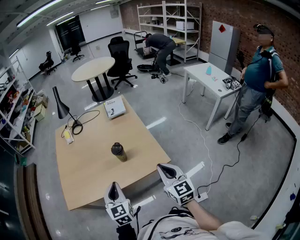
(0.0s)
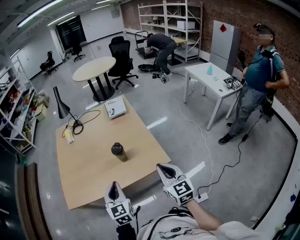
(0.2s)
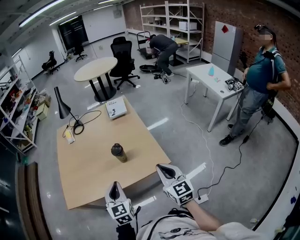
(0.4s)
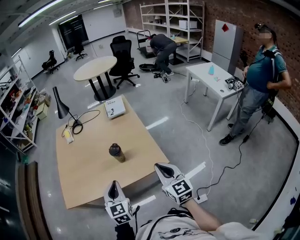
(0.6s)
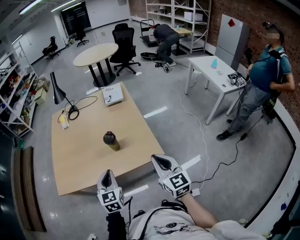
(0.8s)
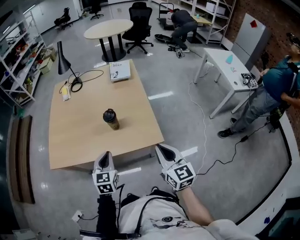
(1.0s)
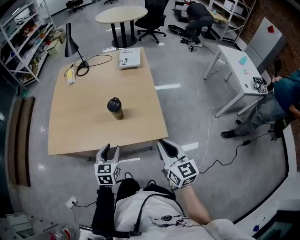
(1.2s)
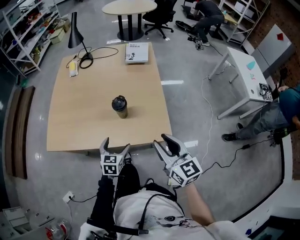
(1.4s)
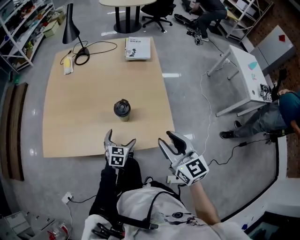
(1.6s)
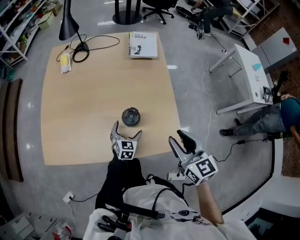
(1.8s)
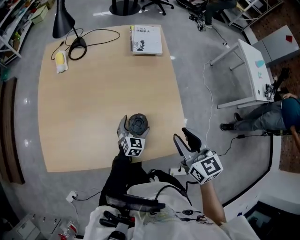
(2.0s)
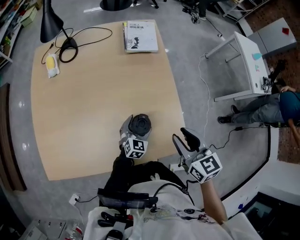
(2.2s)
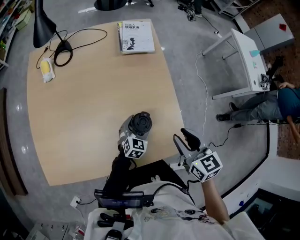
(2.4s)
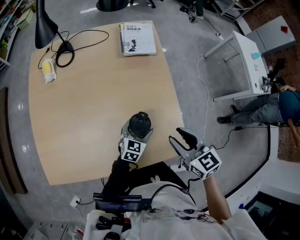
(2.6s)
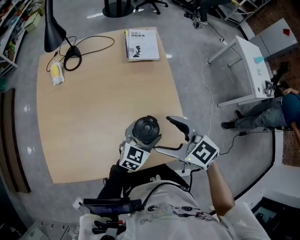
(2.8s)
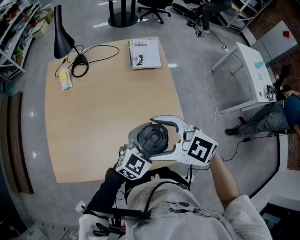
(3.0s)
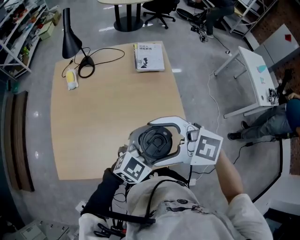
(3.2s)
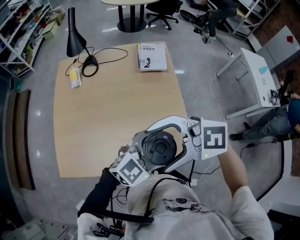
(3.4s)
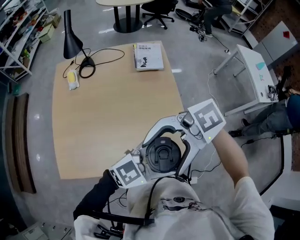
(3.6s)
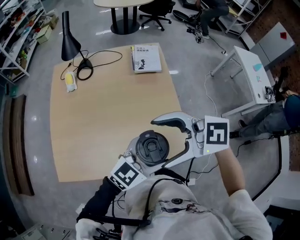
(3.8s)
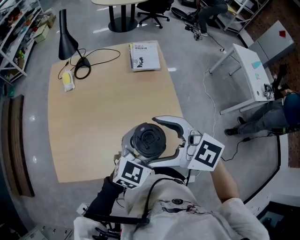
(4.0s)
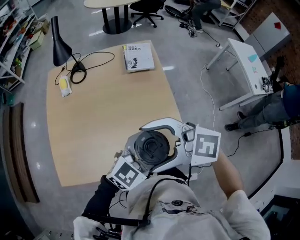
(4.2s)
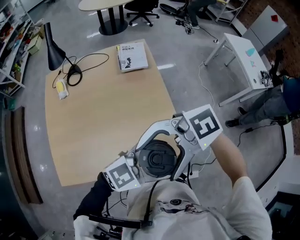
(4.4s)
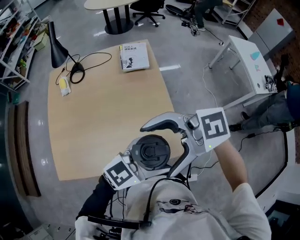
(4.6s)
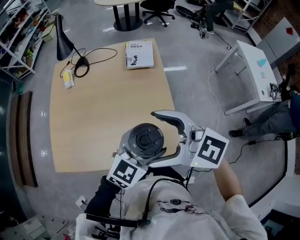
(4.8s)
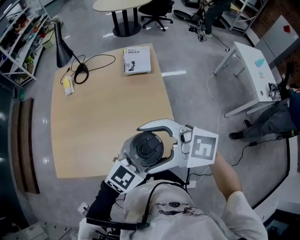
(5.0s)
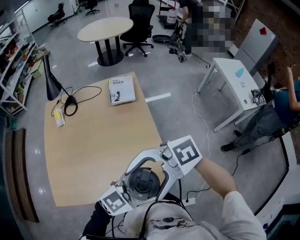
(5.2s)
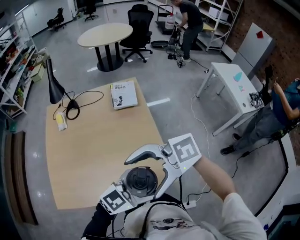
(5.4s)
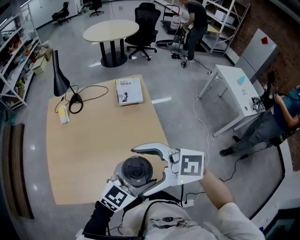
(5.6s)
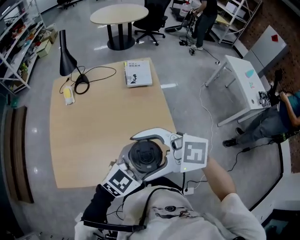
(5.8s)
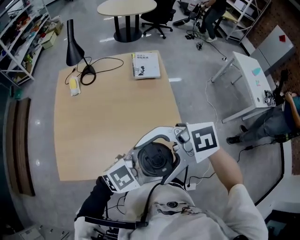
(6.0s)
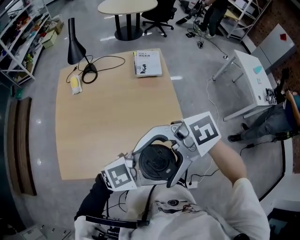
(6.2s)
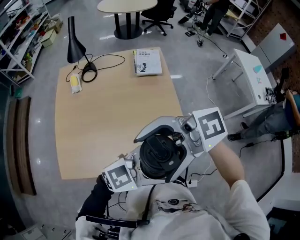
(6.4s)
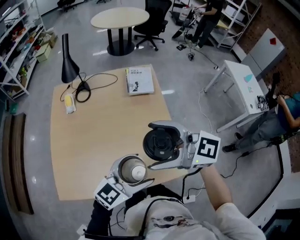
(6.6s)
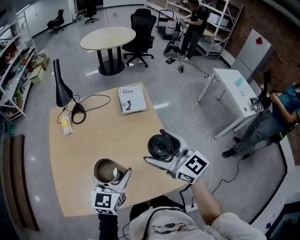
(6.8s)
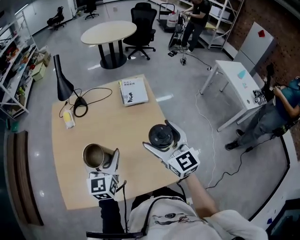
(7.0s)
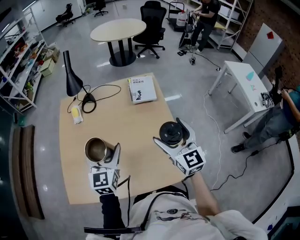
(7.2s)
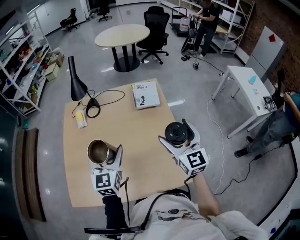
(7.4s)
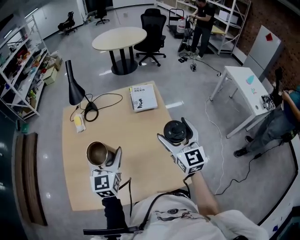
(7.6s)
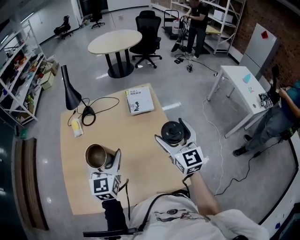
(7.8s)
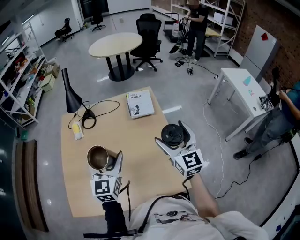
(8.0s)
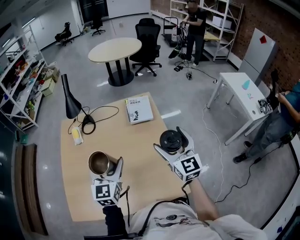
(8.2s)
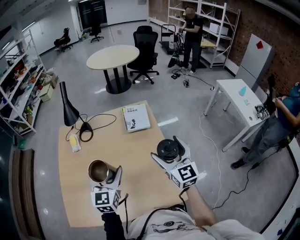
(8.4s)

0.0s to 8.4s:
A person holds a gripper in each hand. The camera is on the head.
0.0s to 1.4s: The left gripper goes some 20 cm downward, rotates roughly 20 degrees, and opens, while the right gripper shifts about 5 cm forward, and swivels about 20 degrees.
1.4s to 2.8s: The left gripper moves forward, about 20 cm, and swivels roughly 40 degrees; the right gripper goes approximately 25 cm forward and to the left, swivels about 30 degrees, and opens.
2.8s to 4.2s: The grippers both shift upward by about 15 cm. The left gripper rotates roughly 20 degrees. The right gripper changes its angle by approximately 40 degrees.
5.6s to 7.0s: The right gripper shifts by about 15 cm, and rotates approximately 60 degrees, while the left gripper changes place by about 25 cm, and turns by about 50 degrees.
7.0s to 8.4s: The right gripper heads to the right, covering some 5 cm.

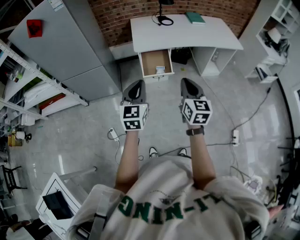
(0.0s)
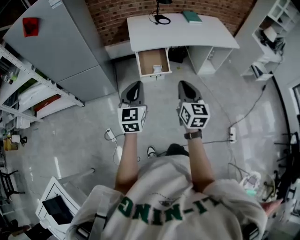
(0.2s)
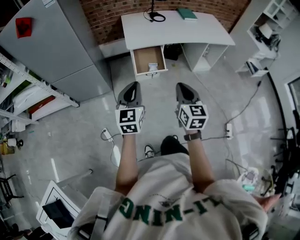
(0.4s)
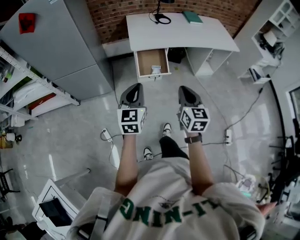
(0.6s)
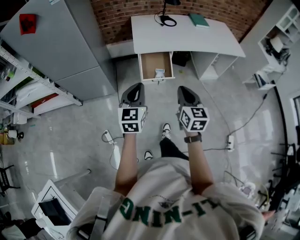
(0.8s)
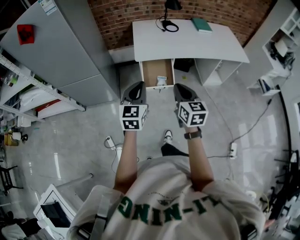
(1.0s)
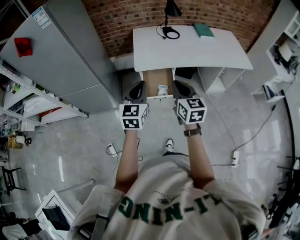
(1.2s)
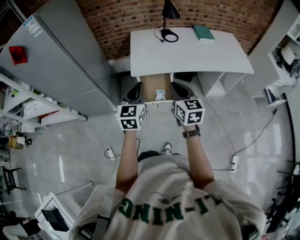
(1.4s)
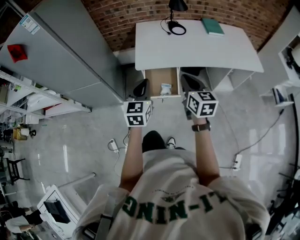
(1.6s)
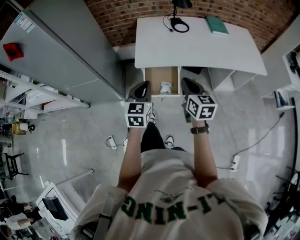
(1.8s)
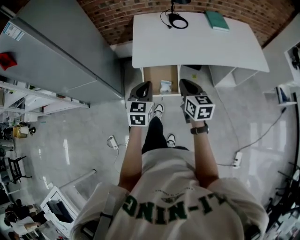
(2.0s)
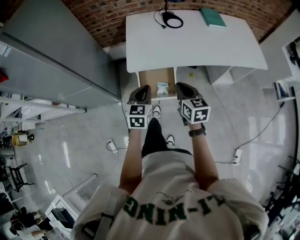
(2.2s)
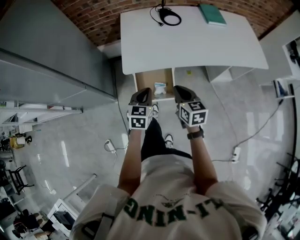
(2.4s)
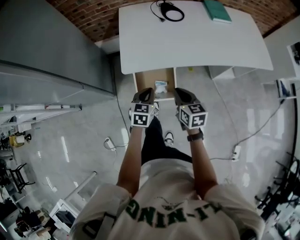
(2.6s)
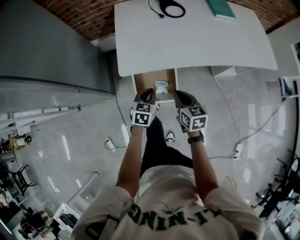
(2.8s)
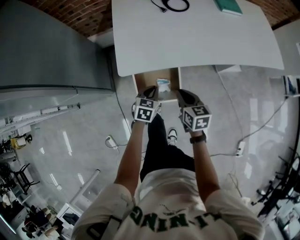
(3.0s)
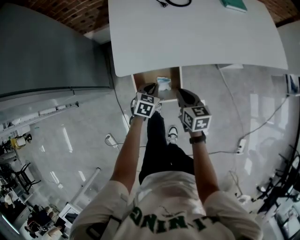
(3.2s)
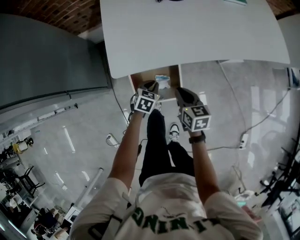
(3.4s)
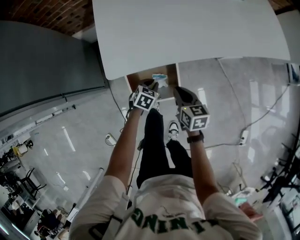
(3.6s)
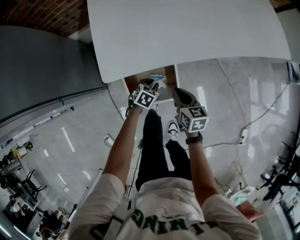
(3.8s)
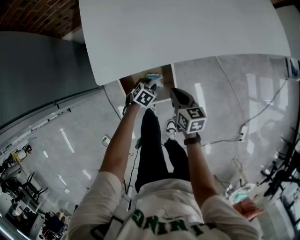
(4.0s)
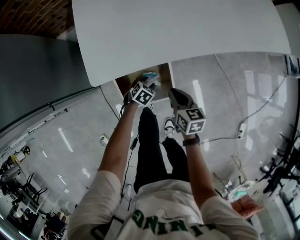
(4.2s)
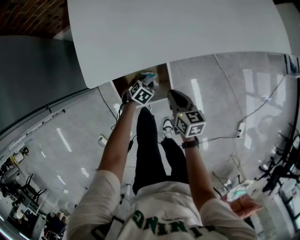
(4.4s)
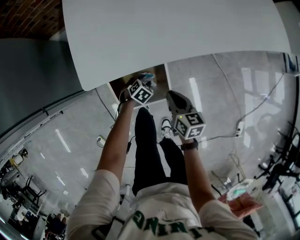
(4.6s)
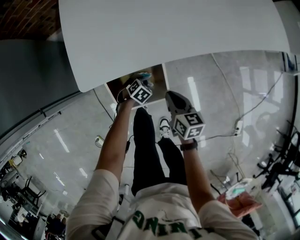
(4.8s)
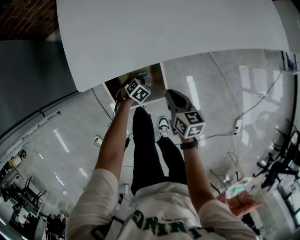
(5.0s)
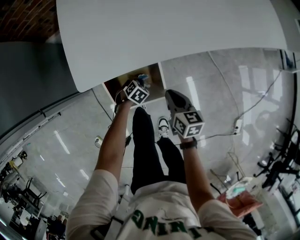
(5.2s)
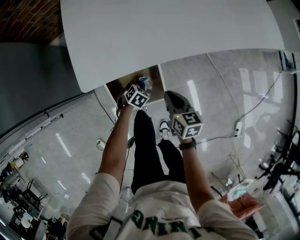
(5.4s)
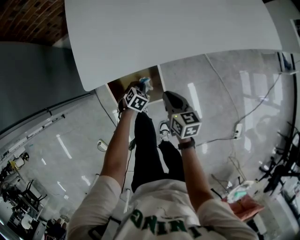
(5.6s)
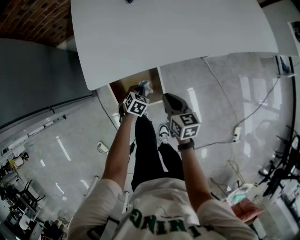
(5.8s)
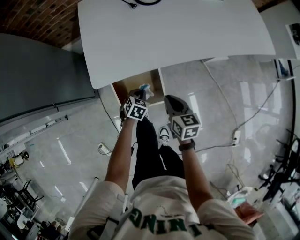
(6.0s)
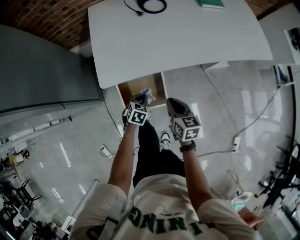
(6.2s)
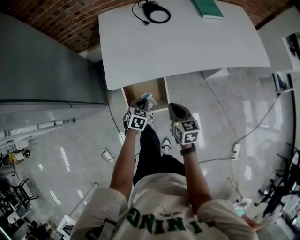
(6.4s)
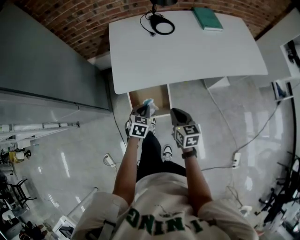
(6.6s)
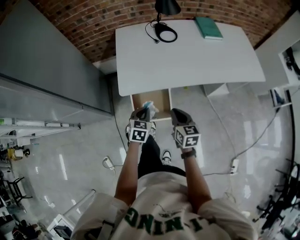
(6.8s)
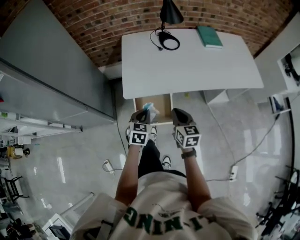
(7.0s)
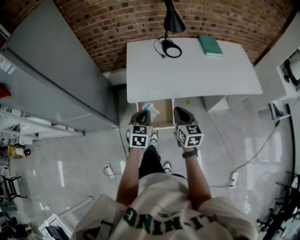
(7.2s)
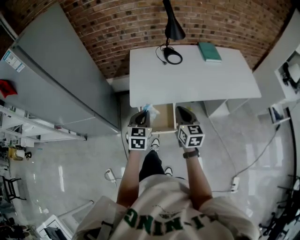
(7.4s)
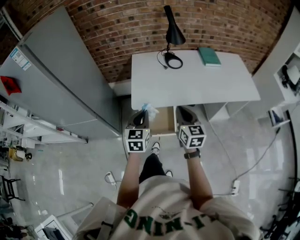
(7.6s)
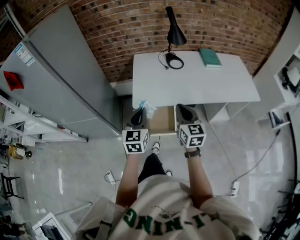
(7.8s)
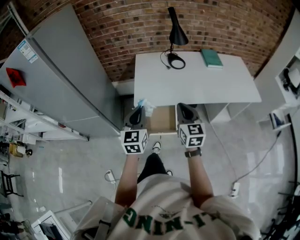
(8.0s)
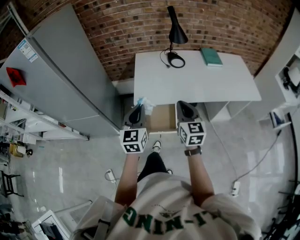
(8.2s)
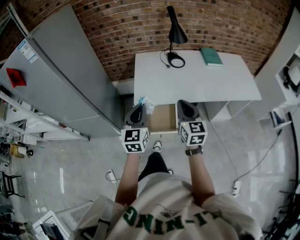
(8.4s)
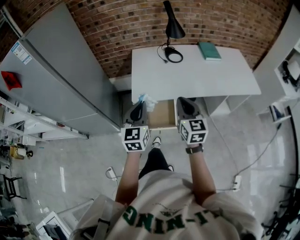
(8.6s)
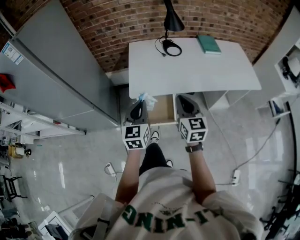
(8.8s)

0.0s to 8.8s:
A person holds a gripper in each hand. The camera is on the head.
0.0s to 1.4s: The two grippers go about 25 cm forward.
1.4s to 3.0s: Both grippers travel together downward and forward, some 35 cm. The left gripper angles its fingers downward, by roughly 30 degrees, while the right gripper rotates about 30 degrees.
3.0s to 4.4s: The left gripper is displaced downward by roughly 25 cm, turns by about 30 degrees, and opens its fingers. The right gripper shifts approximately 15 cm downward.
4.4s to 5.8s: The grippers both shift upward by some 5 cm. The left gripper closes its fingers.
5.8s to 7.4s: The right gripper travels upward by approximately 25 cm, and changes its angle by roughly 30 degrees, while the left gripper shifts roughly 40 cm upward, and angles its fingers upward, by about 40 degrees.
7.4s to 8.8s: Both grippers travel together upward, some 5 cm.

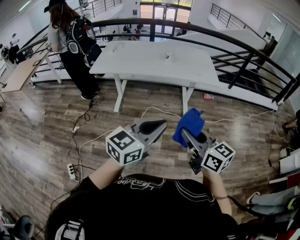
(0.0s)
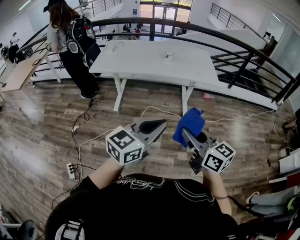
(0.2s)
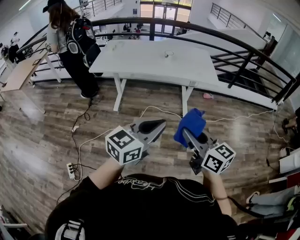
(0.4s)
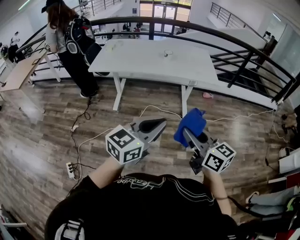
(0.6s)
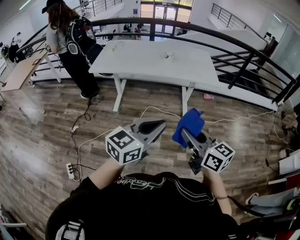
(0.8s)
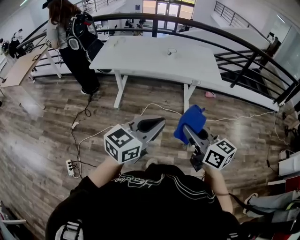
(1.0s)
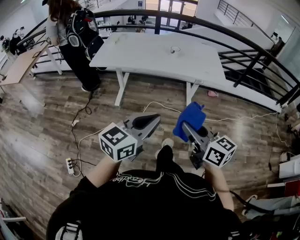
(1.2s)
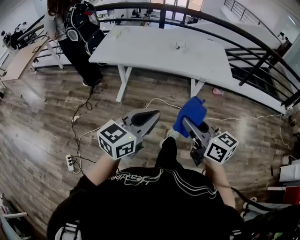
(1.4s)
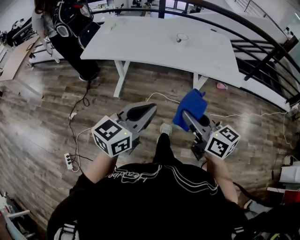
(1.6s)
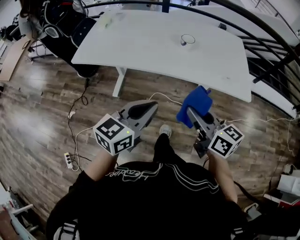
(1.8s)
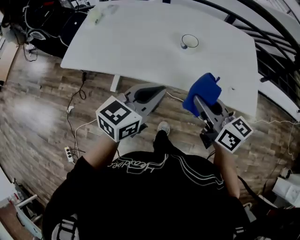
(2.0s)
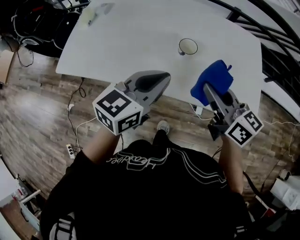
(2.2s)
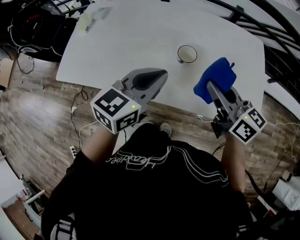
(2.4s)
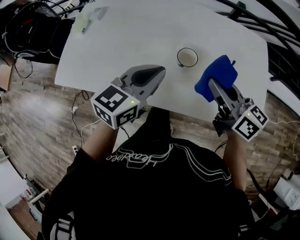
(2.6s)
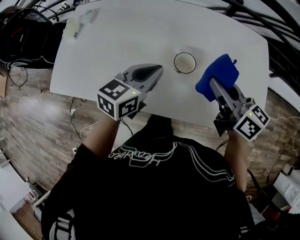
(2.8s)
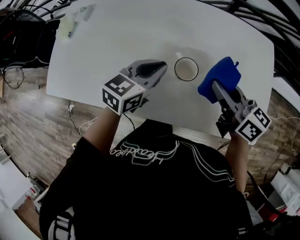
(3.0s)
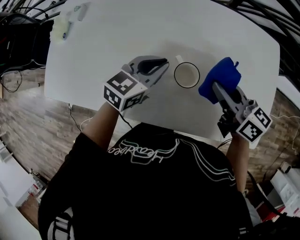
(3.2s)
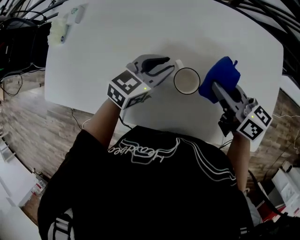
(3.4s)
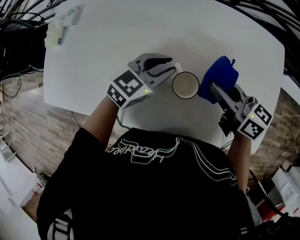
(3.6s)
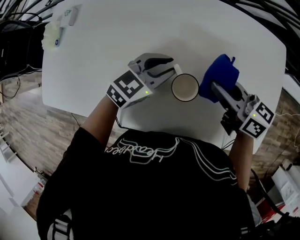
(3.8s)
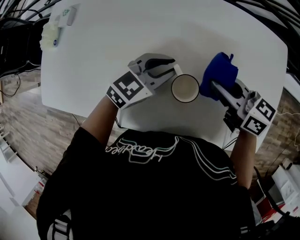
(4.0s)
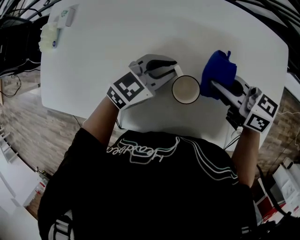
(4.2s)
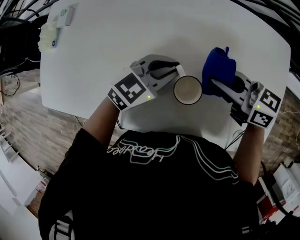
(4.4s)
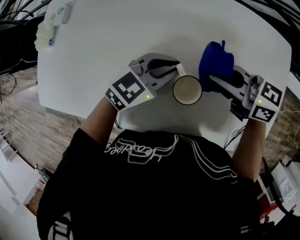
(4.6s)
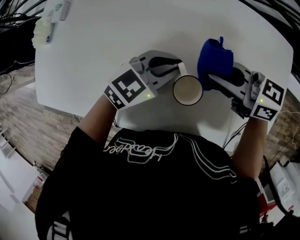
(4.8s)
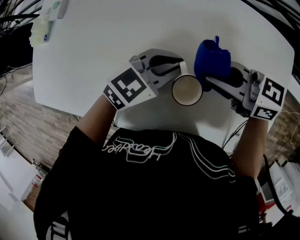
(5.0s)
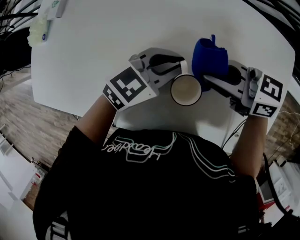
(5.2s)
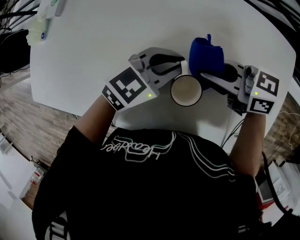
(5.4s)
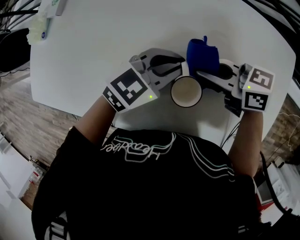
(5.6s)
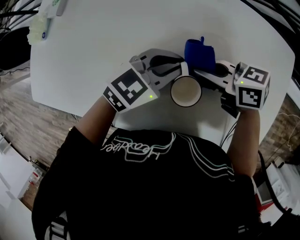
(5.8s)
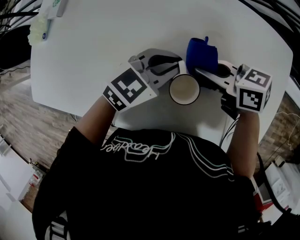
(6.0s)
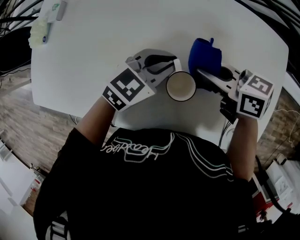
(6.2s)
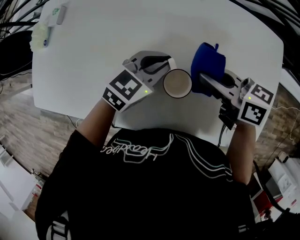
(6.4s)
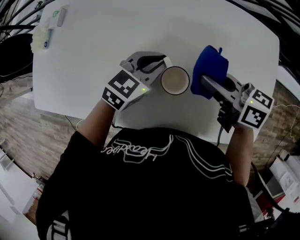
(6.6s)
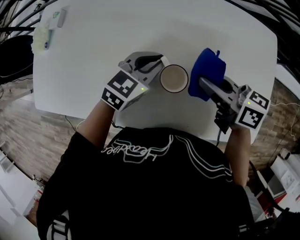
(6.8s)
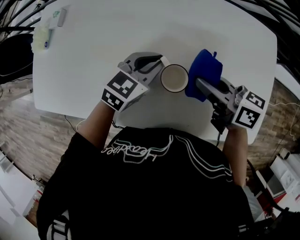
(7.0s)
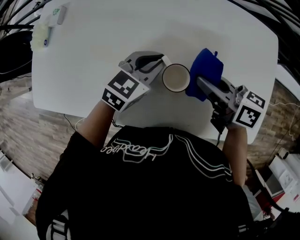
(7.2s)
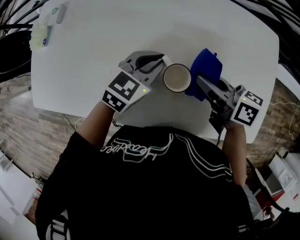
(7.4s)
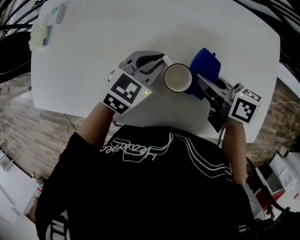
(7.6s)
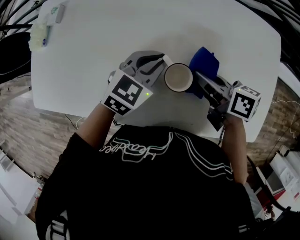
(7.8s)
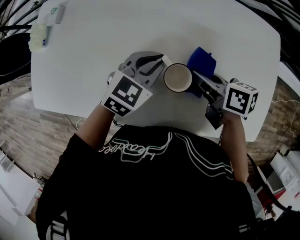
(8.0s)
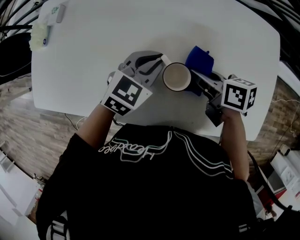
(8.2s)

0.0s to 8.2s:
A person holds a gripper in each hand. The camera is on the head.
0.0s to 1.6s: The right gripper travels forward by some 25 cm; the left gripper is displaced forward and downward by roughly 25 cm.
1.6s to 3.2s: The pair of grippers is taken forward, roughly 70 cm. The left gripper changes its angle by approximately 20 degrees.
3.2s to 5.0s: The left gripper shifts by about 5 cm. The right gripper moves some 5 cm, and rotates approximately 40 degrees.
5.0s to 6.6s: The right gripper swivels some 30 degrees.
6.6s to 8.2s: The right gripper is displaced downward by about 10 cm, and changes its angle by approximately 20 degrees.
